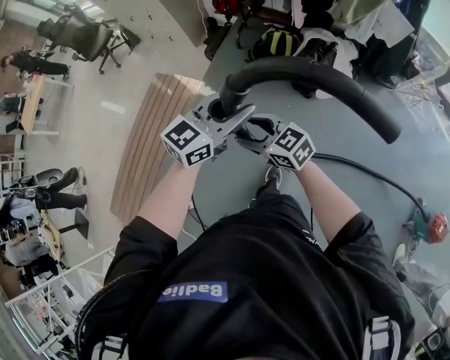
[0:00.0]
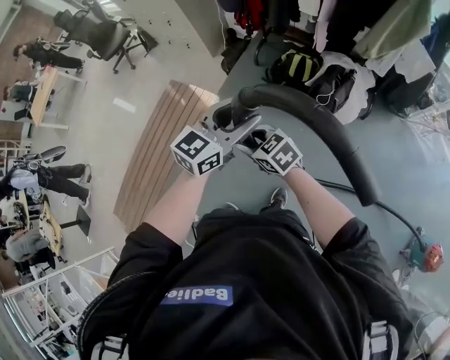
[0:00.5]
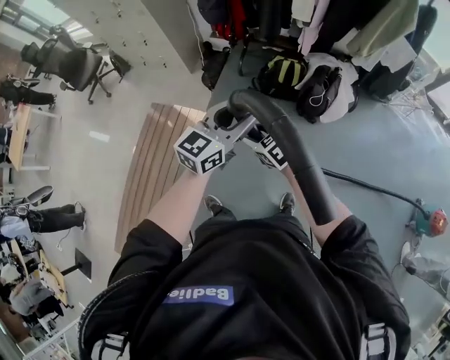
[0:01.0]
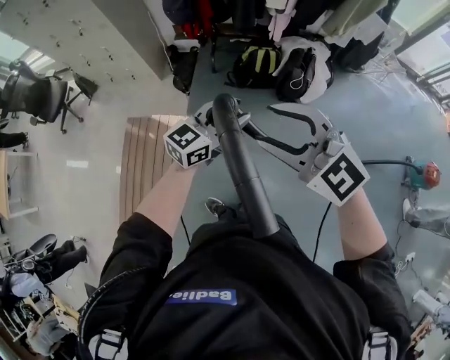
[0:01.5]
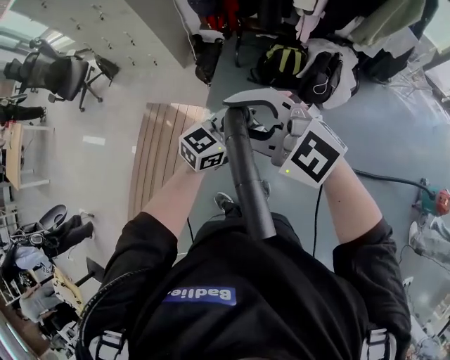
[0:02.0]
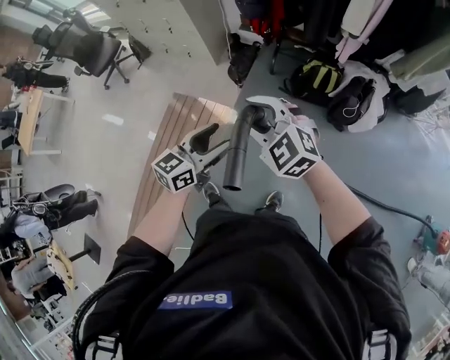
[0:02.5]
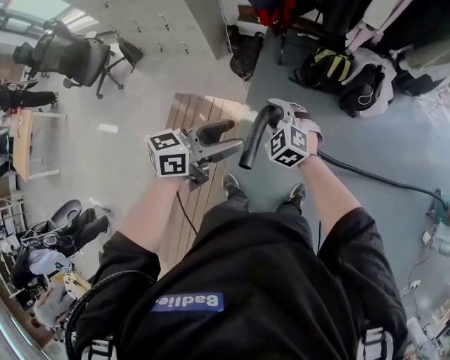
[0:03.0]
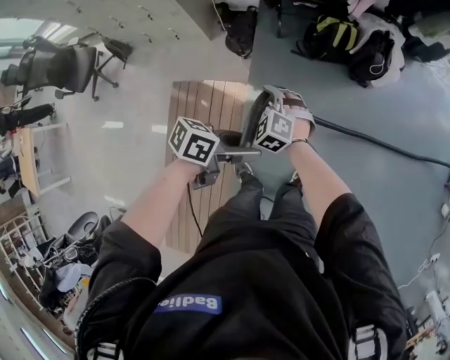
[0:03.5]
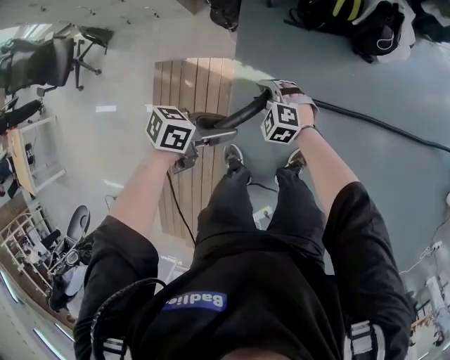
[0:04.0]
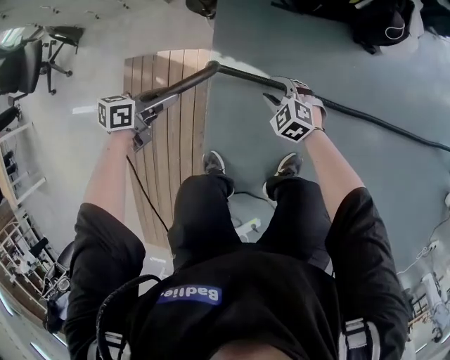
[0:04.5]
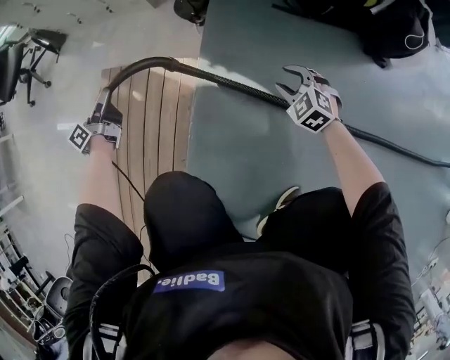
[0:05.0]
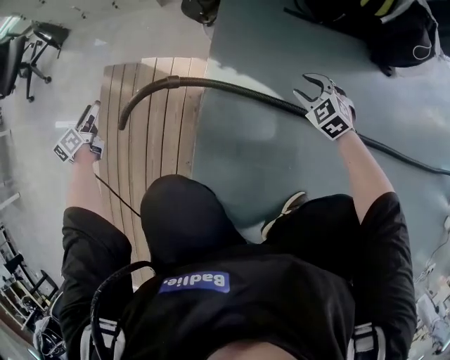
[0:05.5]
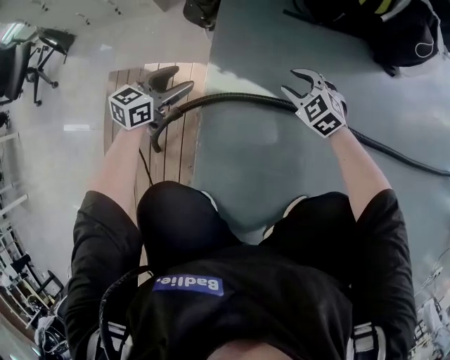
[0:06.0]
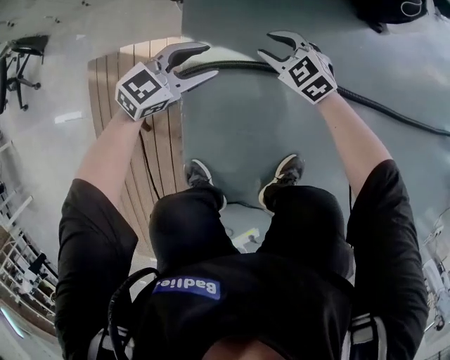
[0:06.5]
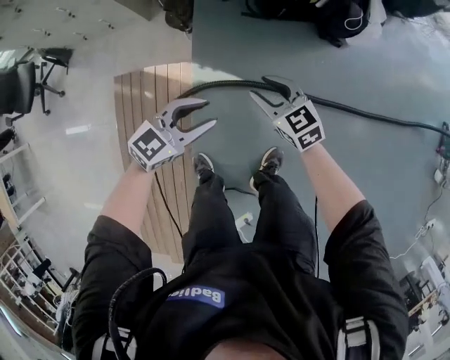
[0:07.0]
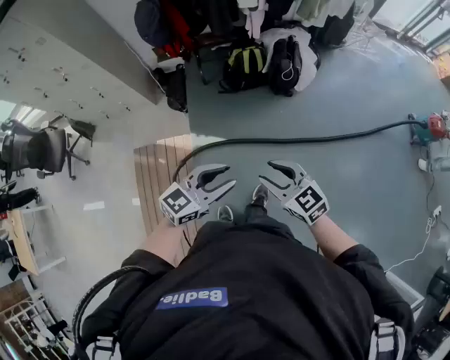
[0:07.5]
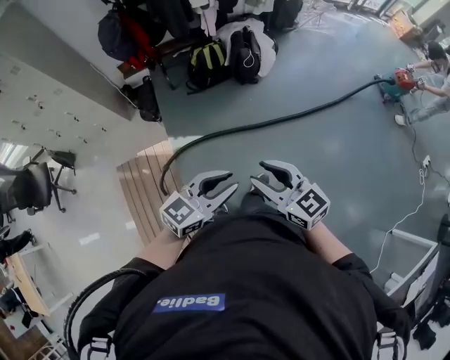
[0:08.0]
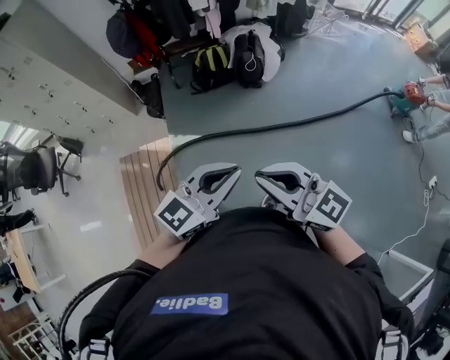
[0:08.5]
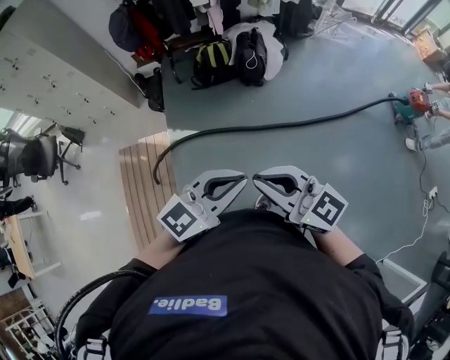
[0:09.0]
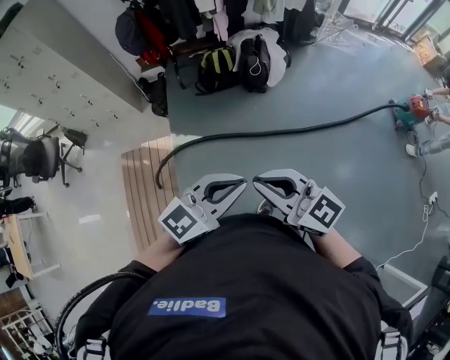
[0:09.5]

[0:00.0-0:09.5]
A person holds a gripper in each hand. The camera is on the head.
0.0 to 2.0 s: The right gripper moves about 40 cm, and rotates about 40 degrees; the left gripper shifts by approximately 30 cm.
2.0 to 4.0 s: The right gripper goes roughly 50 cm downward, and tilts its fingers approximately 40 degrees downward, while the left gripper changes place by approximately 40 cm, and changes its angle by some 50 degrees.
4.0 to 5.5 s: The left gripper ends up about 70 cm from where it was, changes its angle by approximately 70 degrees, and opens up. The right gripper is displaced downward by about 40 cm.
5.5 to 7.5 s: The grippers both shift upward by about 70 cm. The left gripper rotates some 80 degrees, and closes, while the right gripper swivels some 40 degrees.
7.5 to 9.5 s: The right gripper goes roughly 25 cm upward, backward and to the right, swivels approximately 30 degrees, and closes its fingers, while the left gripper travels to the right, backward and upward by about 30 cm, and closes its fingers.

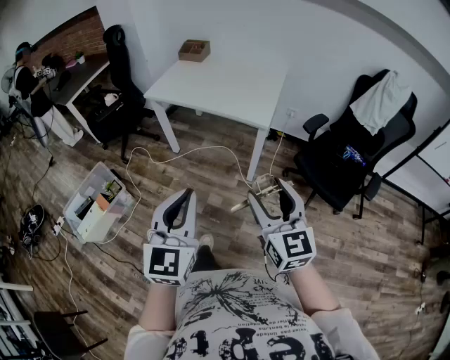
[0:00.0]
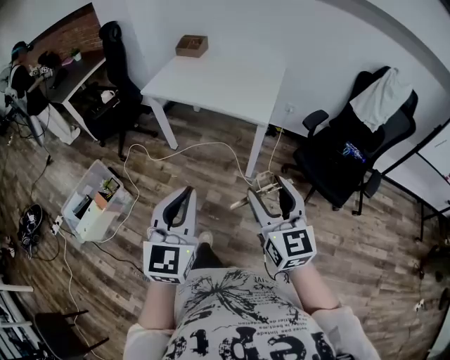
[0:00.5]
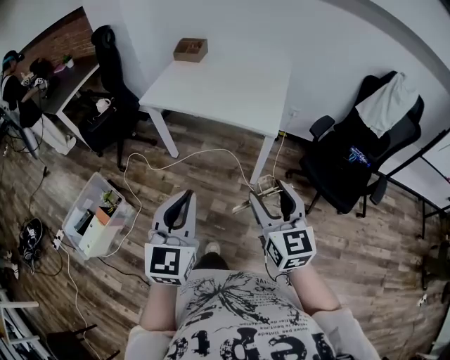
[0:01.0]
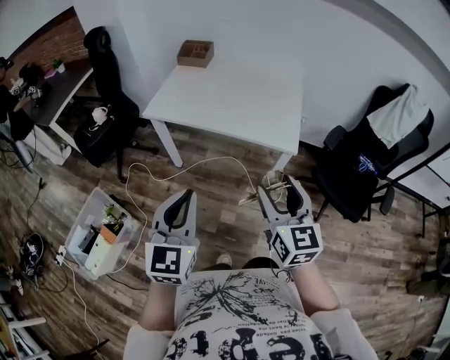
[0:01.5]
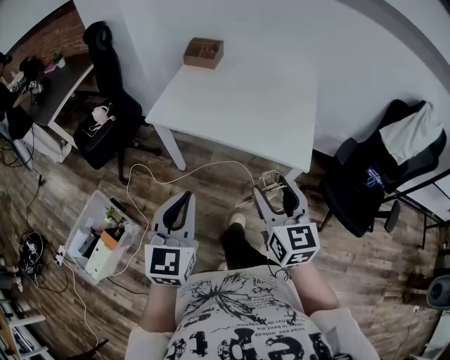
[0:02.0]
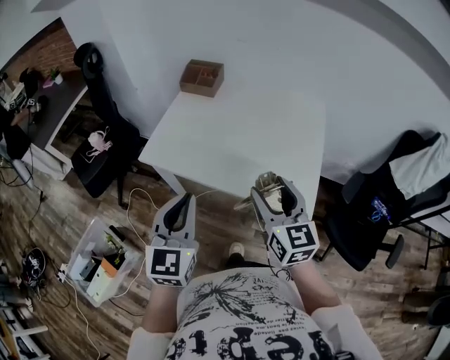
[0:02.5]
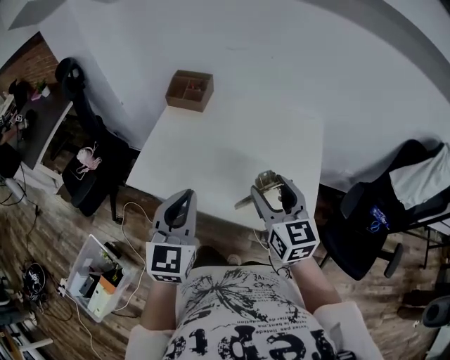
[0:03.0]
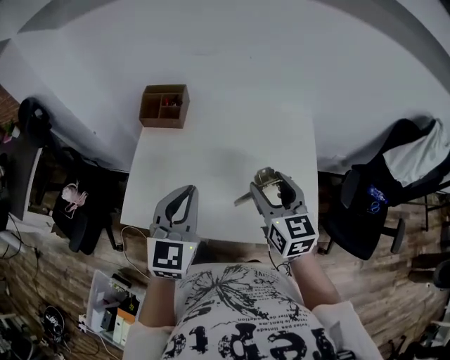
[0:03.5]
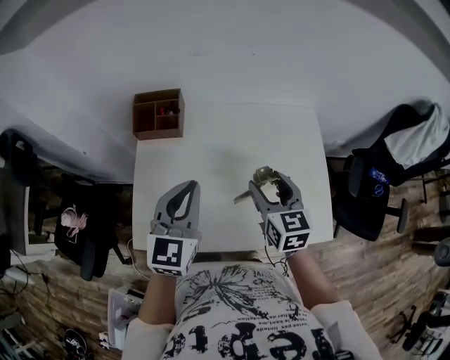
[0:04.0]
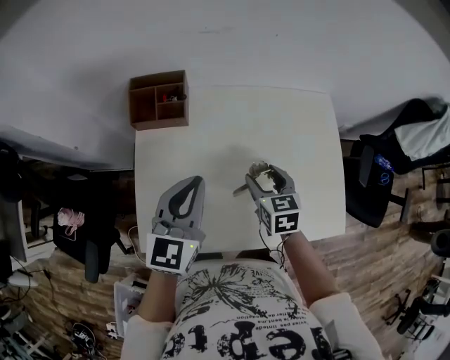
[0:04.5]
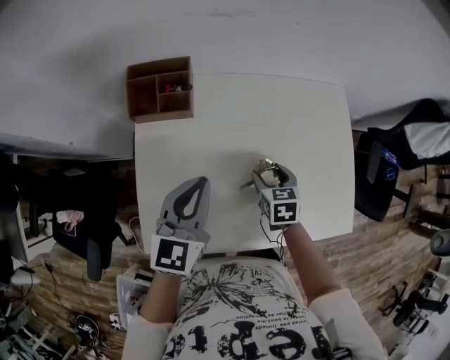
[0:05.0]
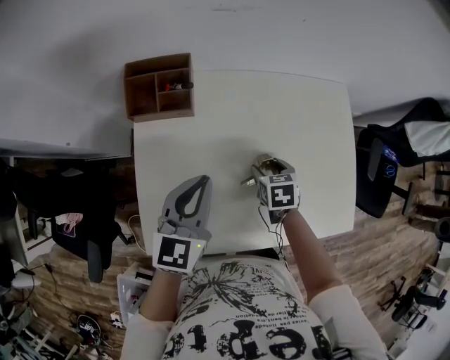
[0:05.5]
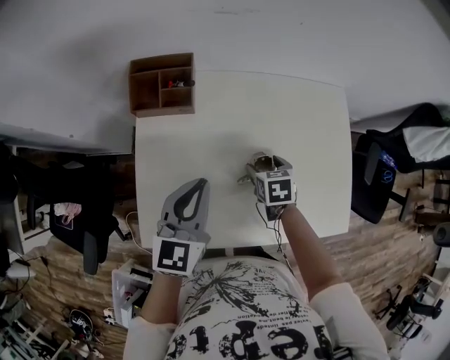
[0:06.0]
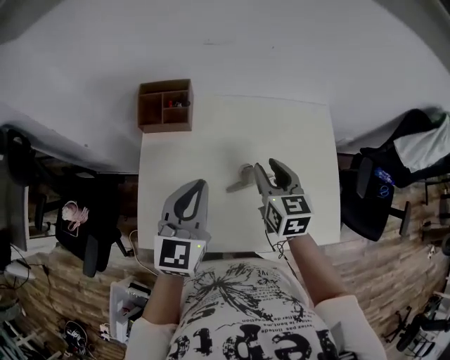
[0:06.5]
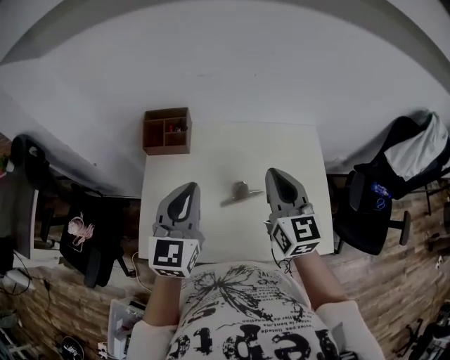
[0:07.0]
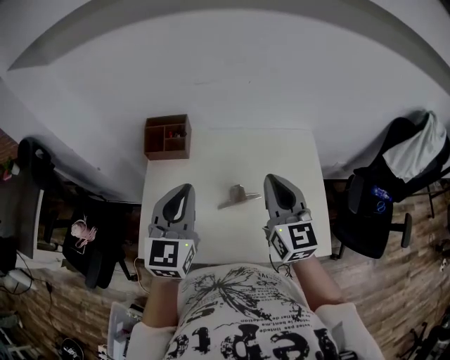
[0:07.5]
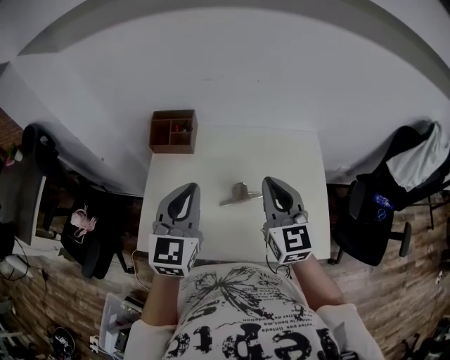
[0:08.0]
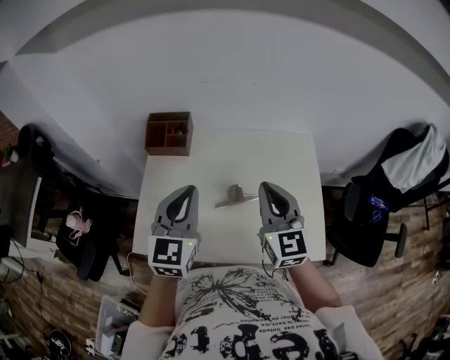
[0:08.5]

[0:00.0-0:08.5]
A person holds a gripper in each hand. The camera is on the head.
0.0 to 2.0 s: Both grippers move forward and to the left, roughly 35 cm.
2.0 to 4.0 s: Both grippers are carried forward, about 50 cm. The left gripper swivels some 20 degrees. Meanwhile the right gripper changes its angle by roughly 20 degrees.
4.0 to 6.5 s: The left gripper reaches some 10 cm downward, then returns. Meanwhile the right gripper shifts approximately 5 cm forward, reaches roughly 20 cm downward, then returns, and closes.
6.5 to 8.5 s: The right gripper moves upward and backward, roughly 15 cm, turns by roughly 30 degrees, and closes up, while the left gripper moves upward, about 5 cm.

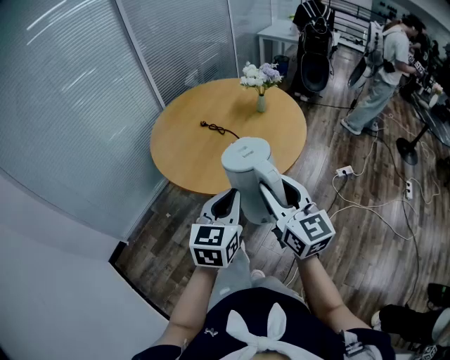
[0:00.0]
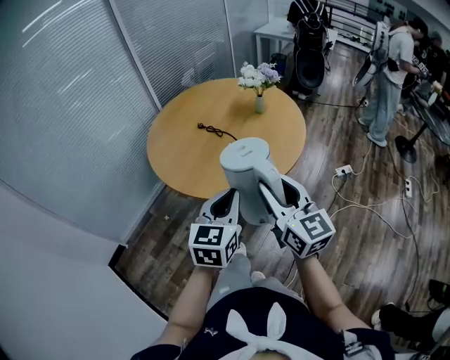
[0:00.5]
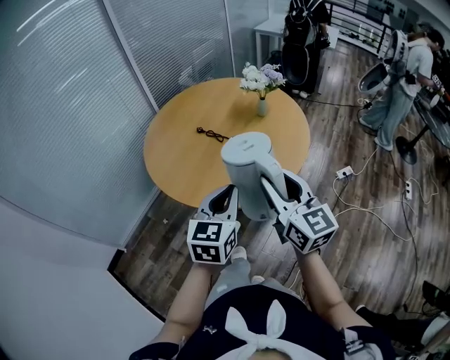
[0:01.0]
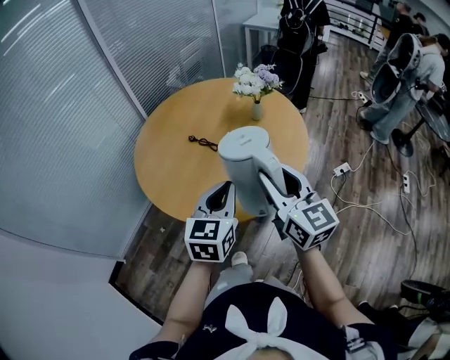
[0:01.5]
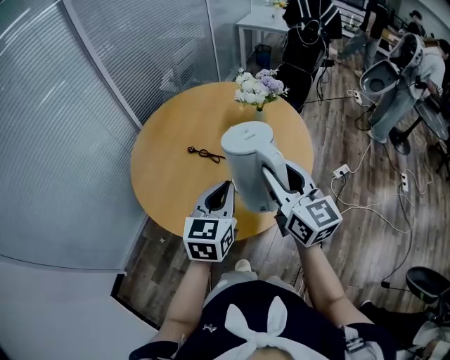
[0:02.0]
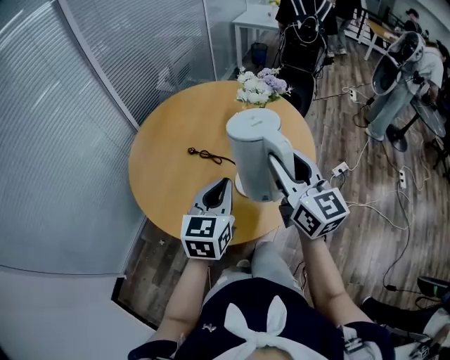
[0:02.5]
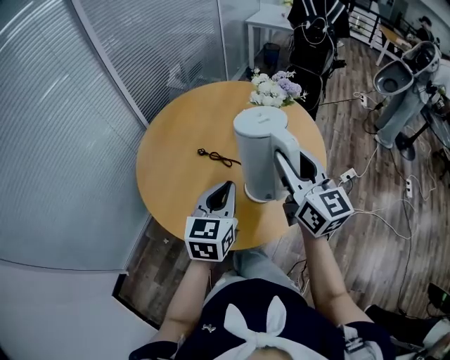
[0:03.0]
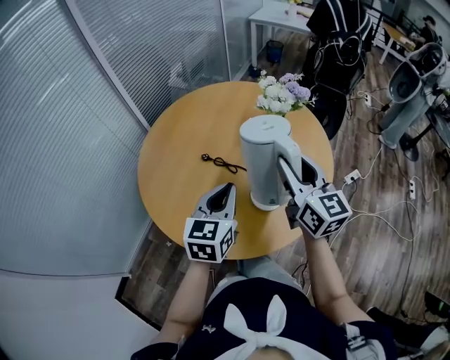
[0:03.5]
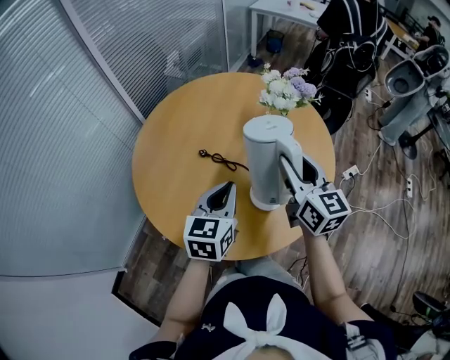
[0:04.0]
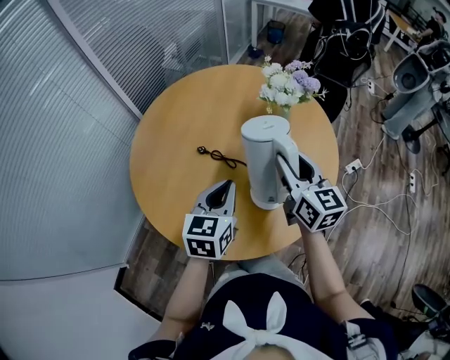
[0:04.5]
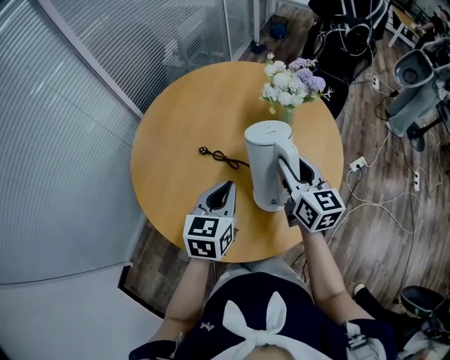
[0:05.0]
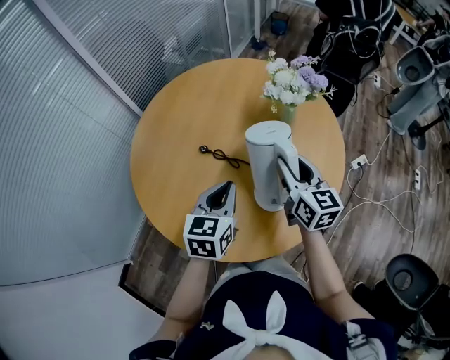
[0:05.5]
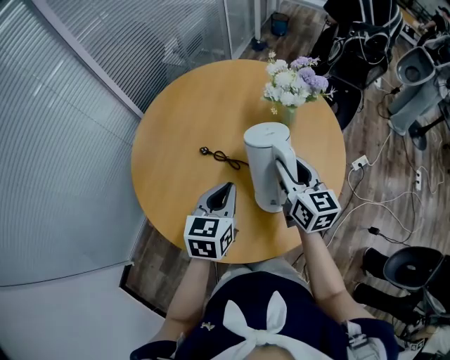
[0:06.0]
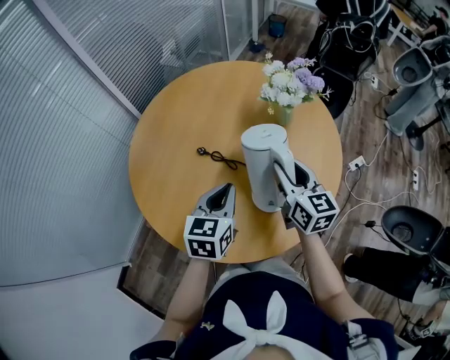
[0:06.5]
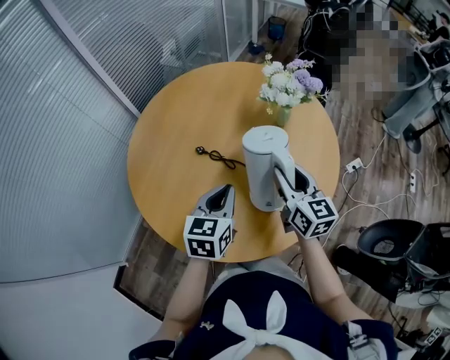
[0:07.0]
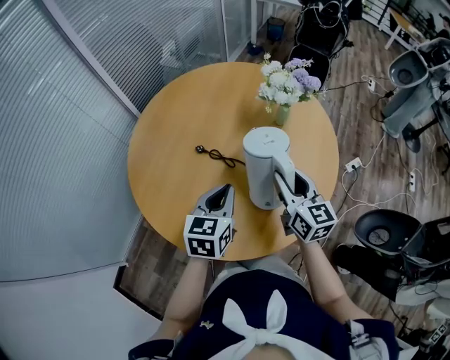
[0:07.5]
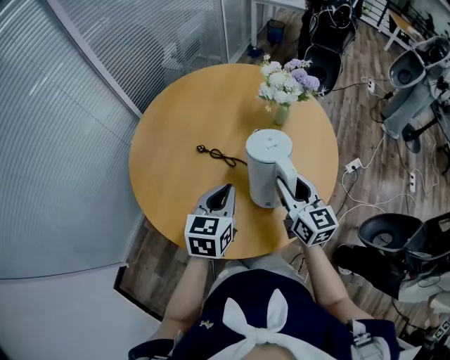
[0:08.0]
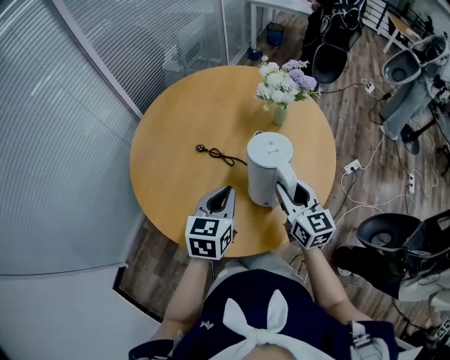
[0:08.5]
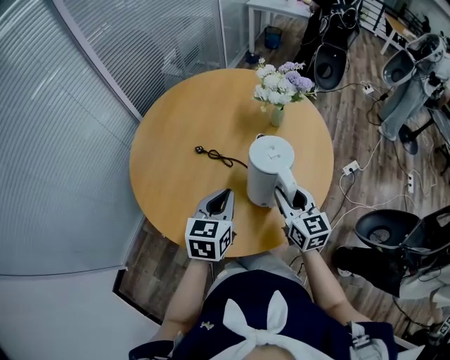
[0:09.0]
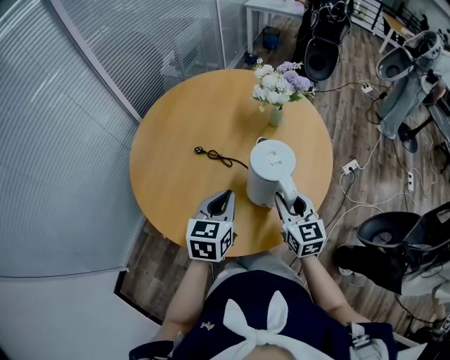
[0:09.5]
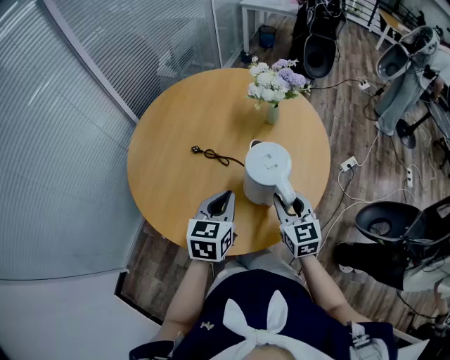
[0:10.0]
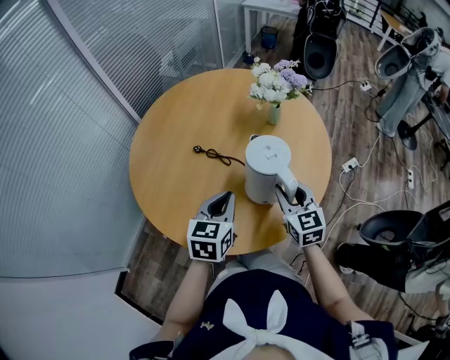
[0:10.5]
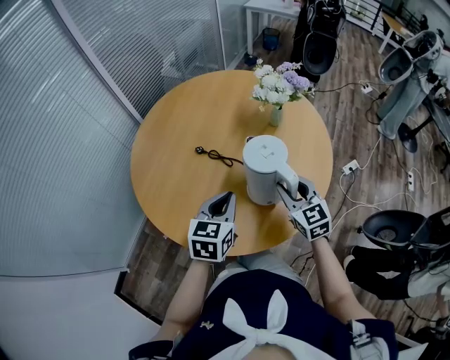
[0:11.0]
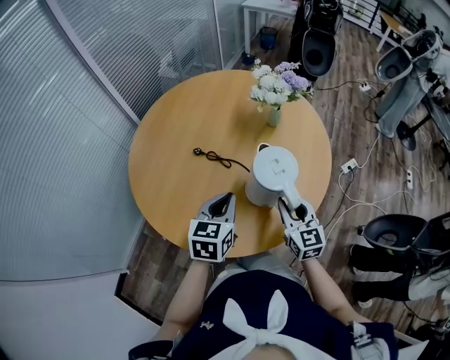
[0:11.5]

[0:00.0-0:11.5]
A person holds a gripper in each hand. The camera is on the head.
0.0 to 2.0 s: The grippers both shift forward by some 25 cm.
2.0 to 4.0 s: The left gripper heads forward, to the left and downward, covering roughly 15 cm. The right gripper travels forward by roughly 15 cm.
4.0 to 6.0 s: The right gripper goes about 10 cm downward. Meanwhile the left gripper moves approximately 5 cm.
6.0 to 7.5 s: The grippers move only a little.
7.5 to 9.5 s: The right gripper is displaced backward by roughly 10 cm.
9.5 to 11.5 s: The grippers move only a little.
